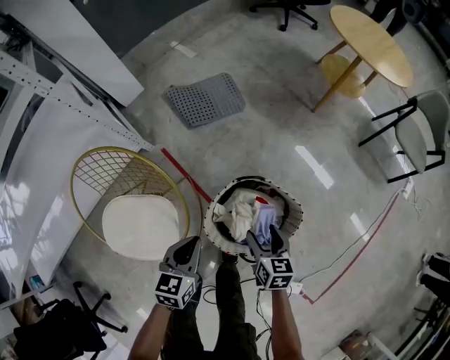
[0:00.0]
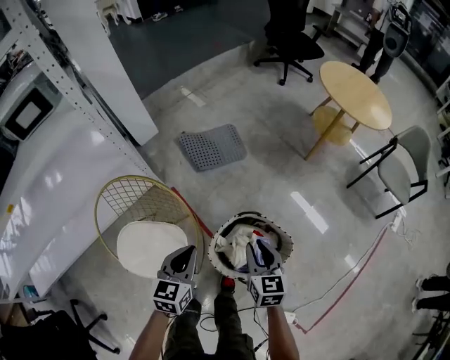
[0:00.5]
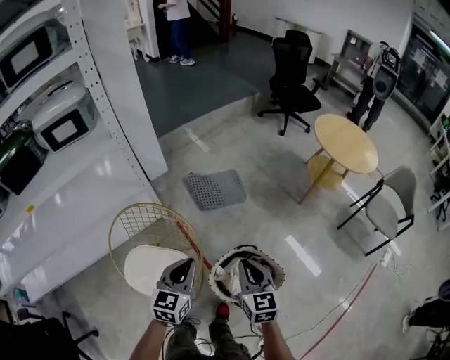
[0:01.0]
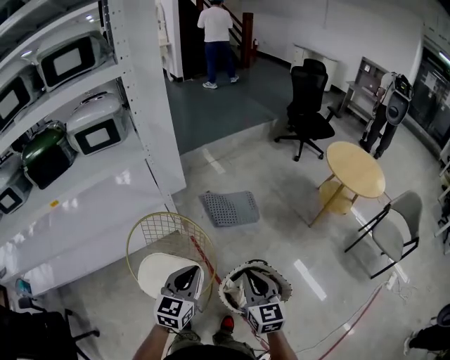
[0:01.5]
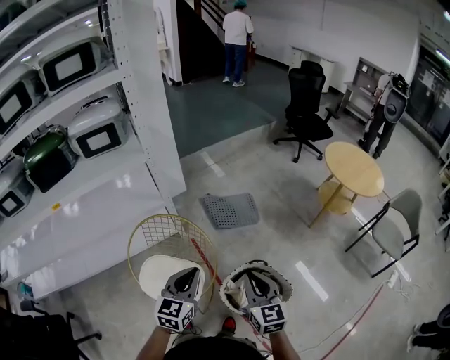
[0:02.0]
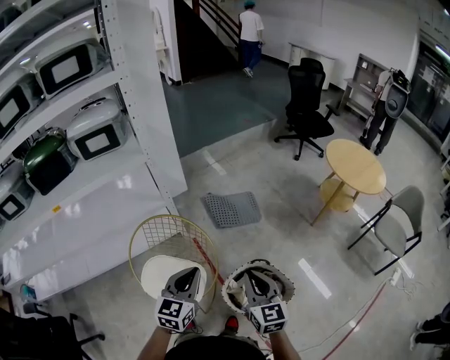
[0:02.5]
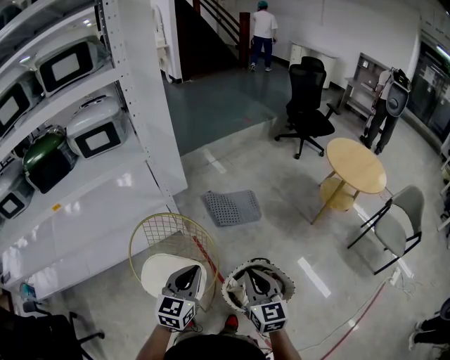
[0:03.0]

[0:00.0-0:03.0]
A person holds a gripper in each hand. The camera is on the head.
0:00.0 to 0:01.5: The grippers both shift upward by roughly 35 cm. The right gripper rotates roughly 40 degrees, and closes up, while the left gripper rotates roughly 30 degrees.
0:01.5 to 0:03.0: Neither gripper changes place.

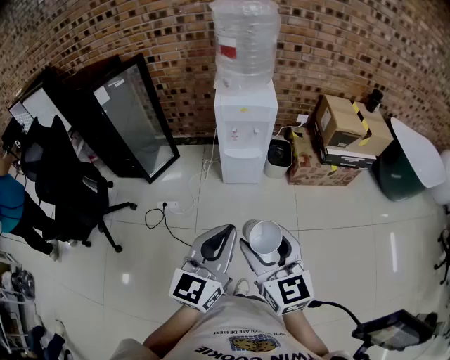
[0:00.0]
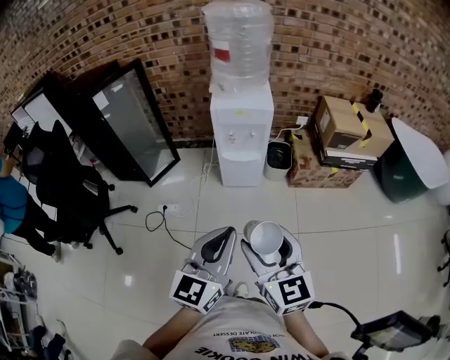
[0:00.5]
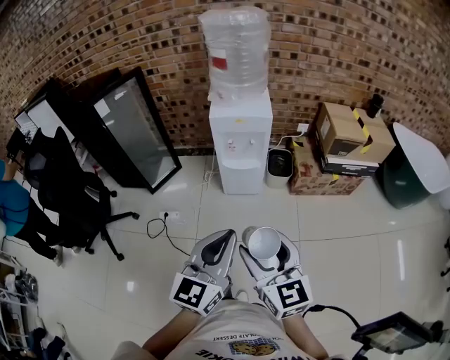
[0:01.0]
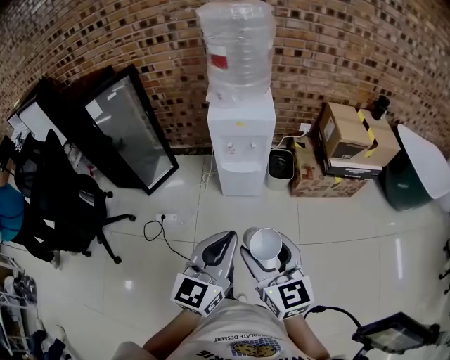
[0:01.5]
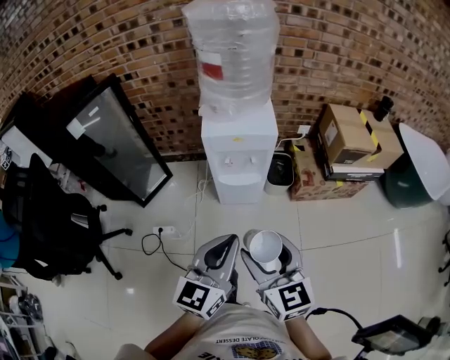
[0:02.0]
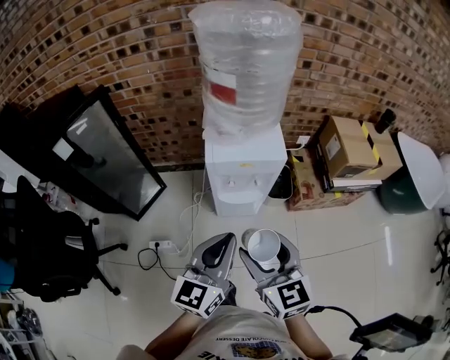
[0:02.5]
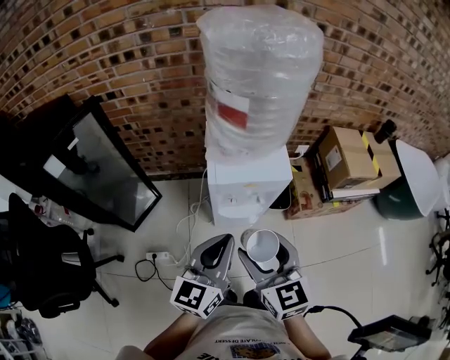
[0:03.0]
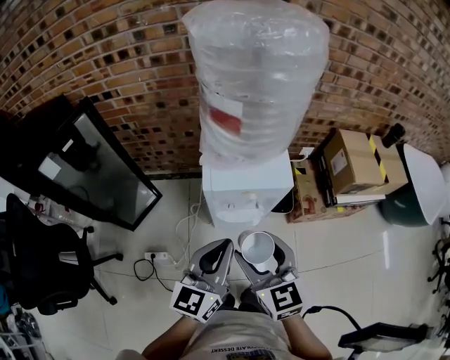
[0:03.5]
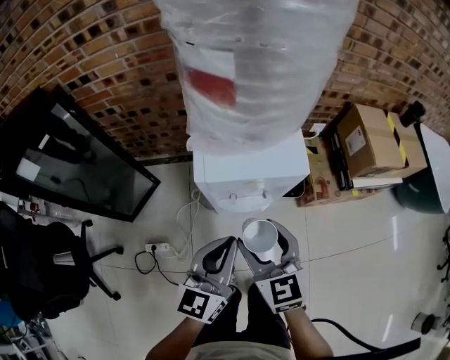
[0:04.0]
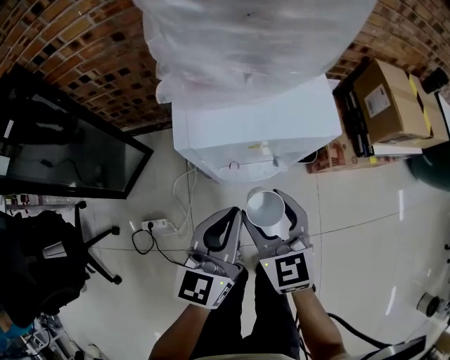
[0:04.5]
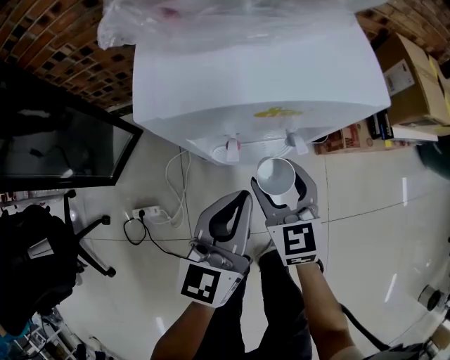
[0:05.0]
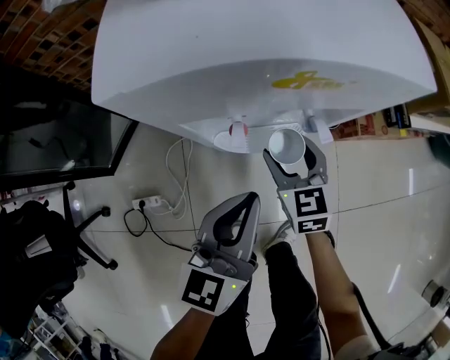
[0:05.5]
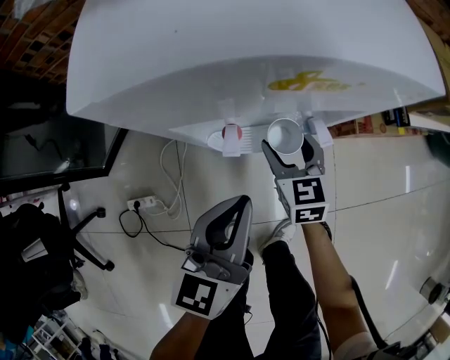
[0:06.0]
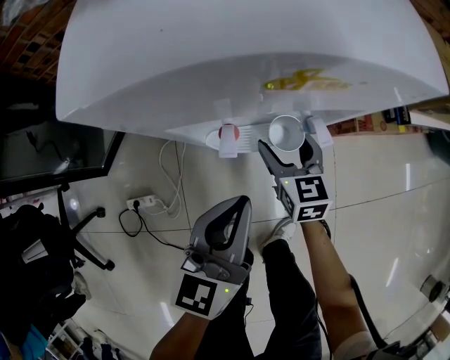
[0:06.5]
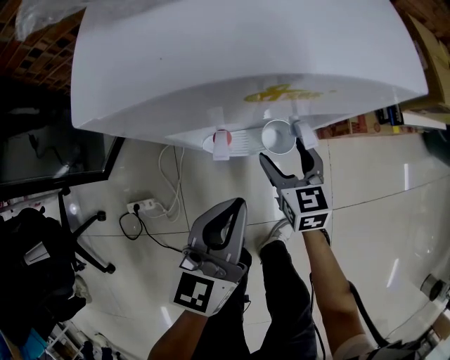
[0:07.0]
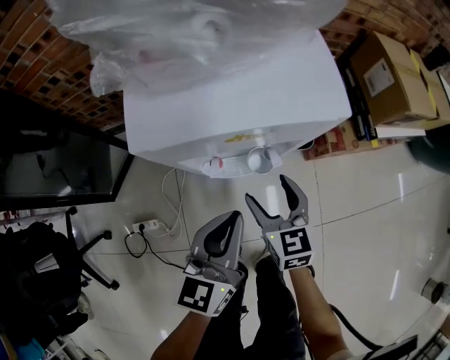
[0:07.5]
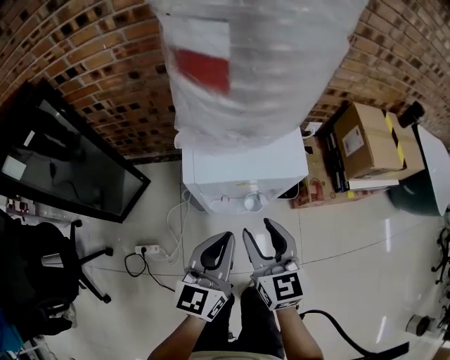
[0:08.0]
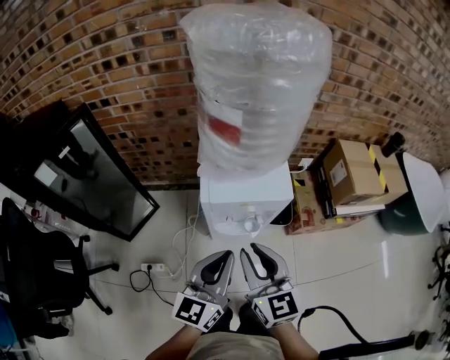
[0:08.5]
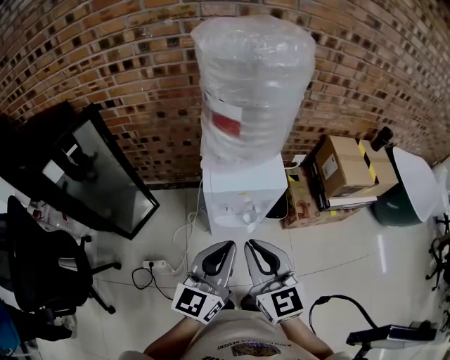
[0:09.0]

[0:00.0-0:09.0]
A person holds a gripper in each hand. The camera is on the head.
0:00.0 to 0:02.0: The two grippers go some 20 cm forward.
0:02.0 to 0:04.5: Both grippers travel together forward and downward, about 35 cm.
0:04.5 to 0:07.0: The right gripper is displaced downward by roughly 25 cm. The left gripper shifts about 15 cm downward.
0:07.0 to 0:09.0: The grippers both shift upward by approximately 40 cm. The right gripper swivels roughly 20 degrees, and closes up.

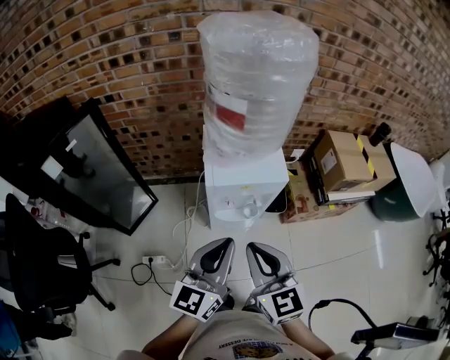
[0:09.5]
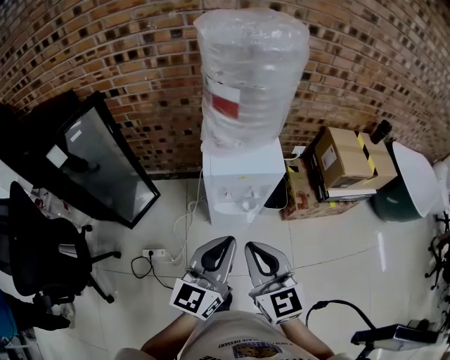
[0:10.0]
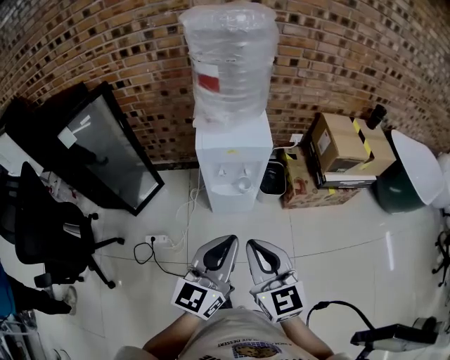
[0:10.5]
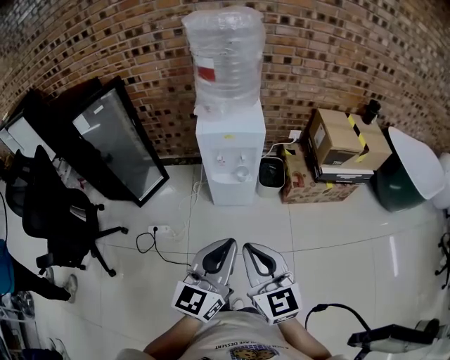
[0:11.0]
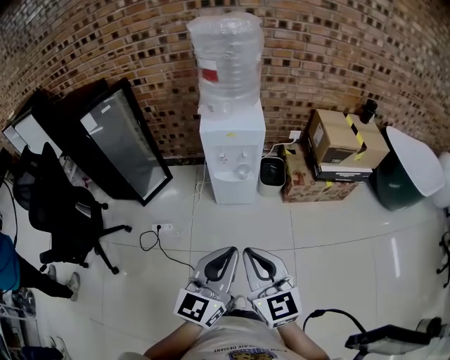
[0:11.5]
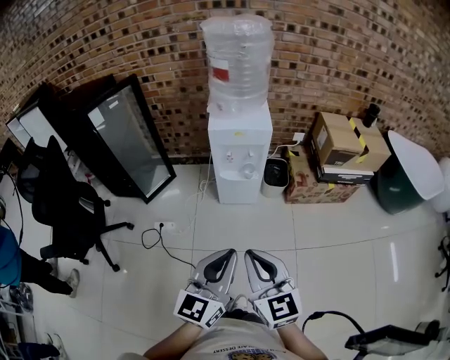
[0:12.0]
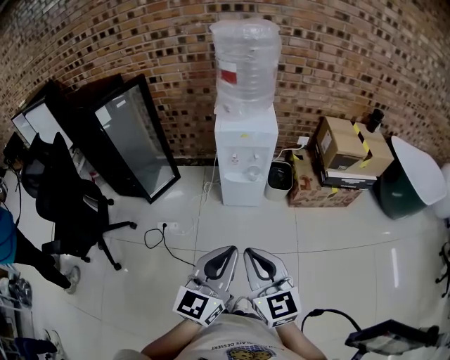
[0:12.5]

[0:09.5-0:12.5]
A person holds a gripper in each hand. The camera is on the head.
0:09.5 to 0:11.0: The two grippers go approximately 25 cm backward and to the right.
0:11.0 to 0:12.5: Both grippers travel together backward, about 10 cm.

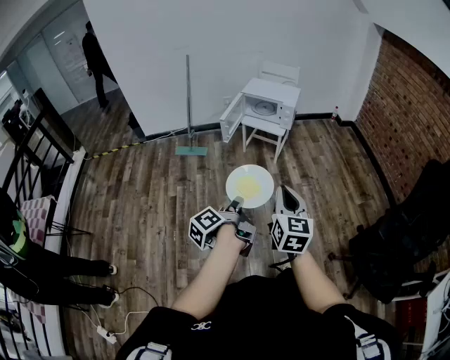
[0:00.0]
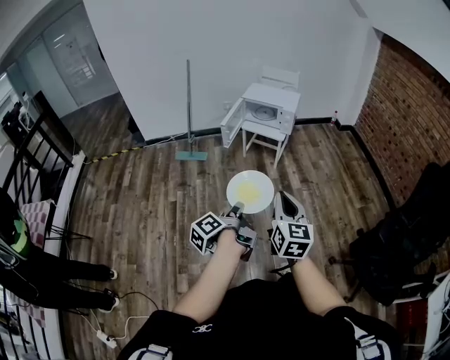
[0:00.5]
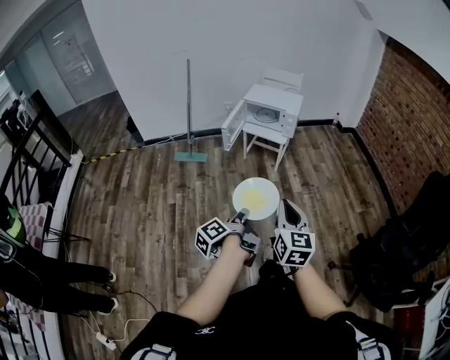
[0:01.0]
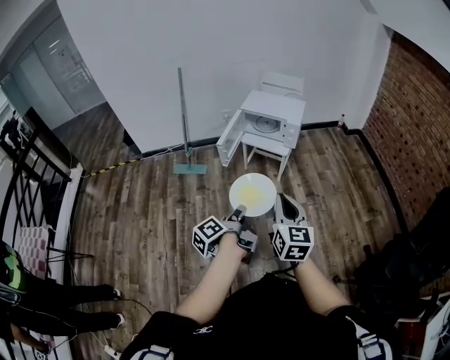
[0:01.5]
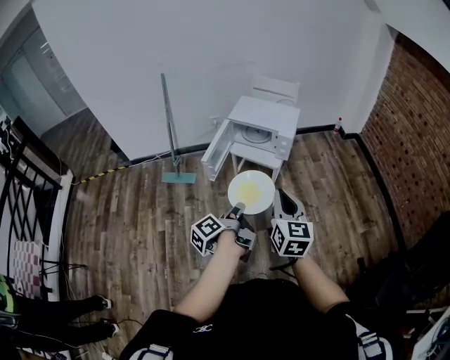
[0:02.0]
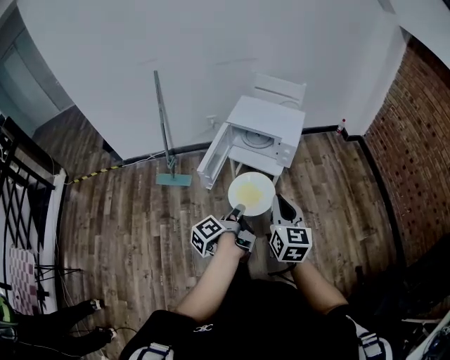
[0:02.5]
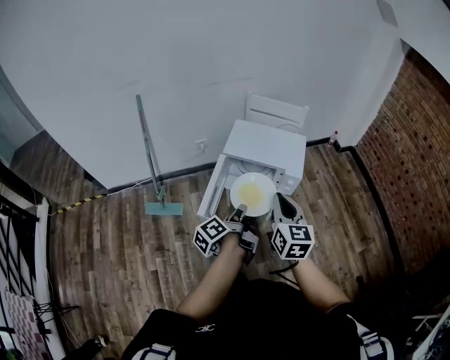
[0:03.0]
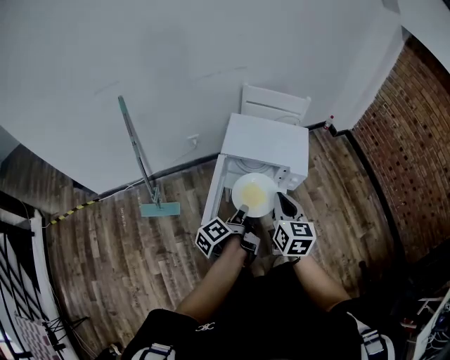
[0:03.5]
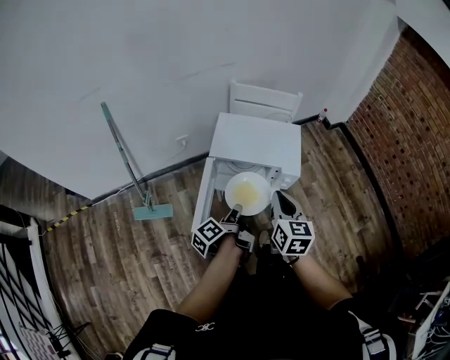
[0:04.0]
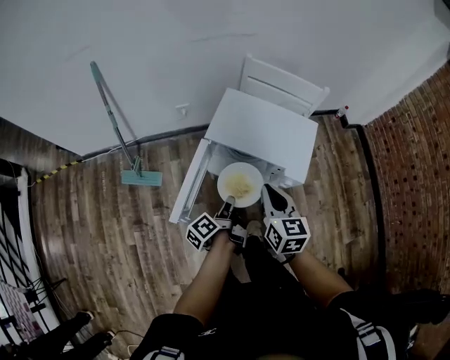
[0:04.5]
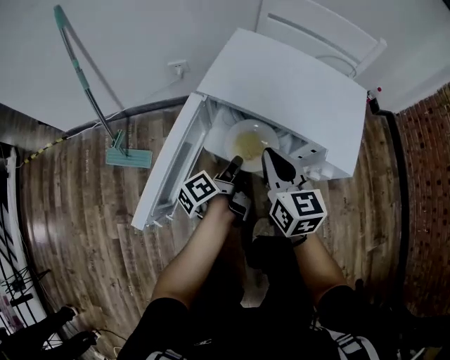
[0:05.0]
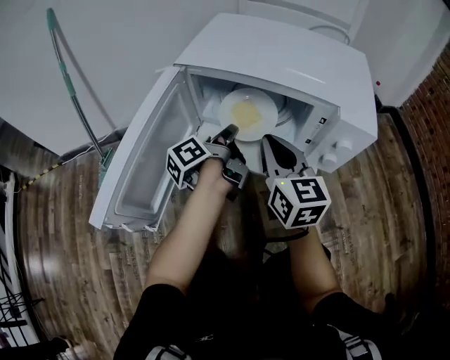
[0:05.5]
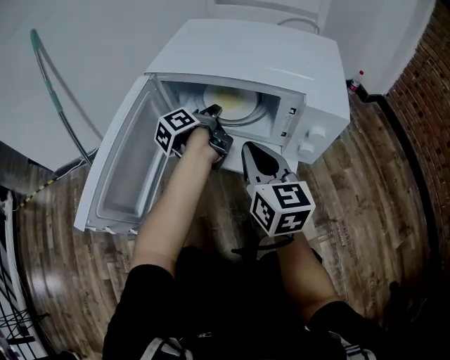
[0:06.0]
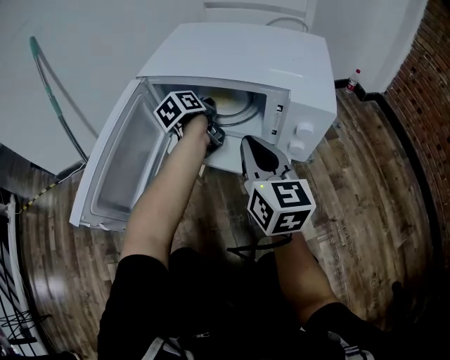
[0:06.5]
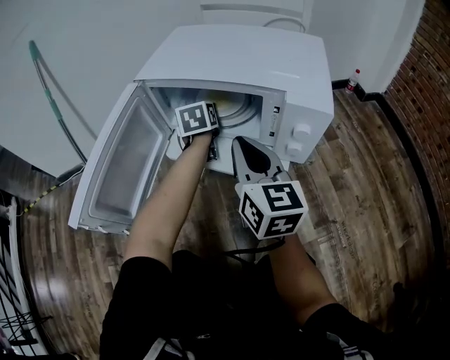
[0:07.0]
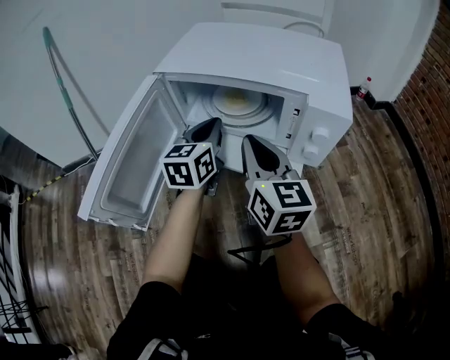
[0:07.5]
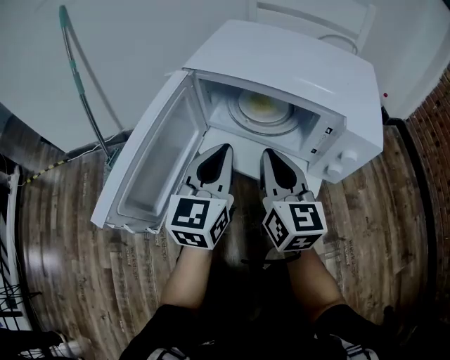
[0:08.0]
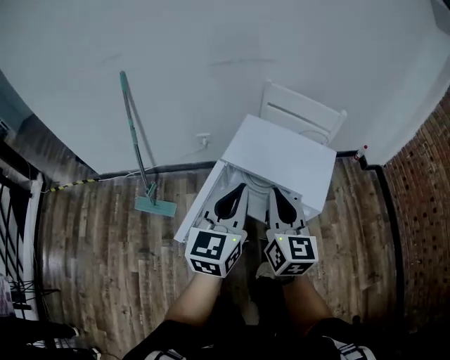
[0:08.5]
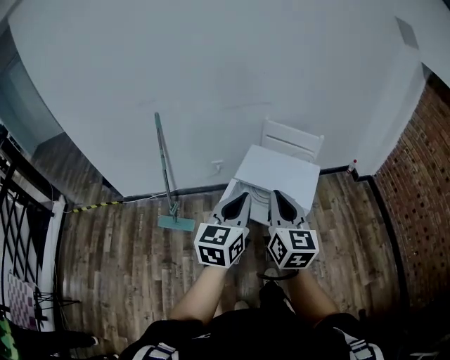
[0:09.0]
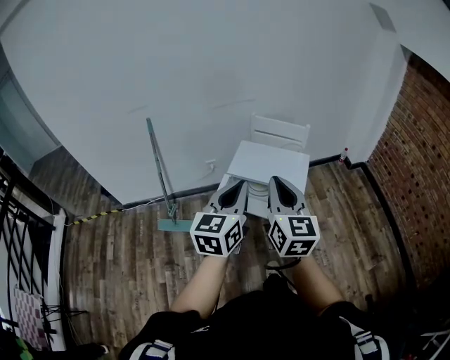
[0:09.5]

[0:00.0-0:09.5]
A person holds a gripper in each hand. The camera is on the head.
0:00.0 to 0:02.0: The two grippers go roughly 35 cm forward.
0:02.0 to 0:04.0: The pair of grippers is taken forward, some 40 cm.
0:04.0 to 0:05.5: The grippers both shift downward and forward by roughly 40 cm. The right gripper turns by approximately 20 degrees.
0:05.5 to 0:07.5: The left gripper is displaced upward by approximately 5 cm, reaches roughly 10 cm forward, then returns, rolls clockwise, seen from behind, by roughly 70 degrees, and opens and closes again.
0:07.5 to 0:09.5: The left gripper heads upward and backward, covering some 70 cm. The right gripper is displaced upward by some 60 cm.

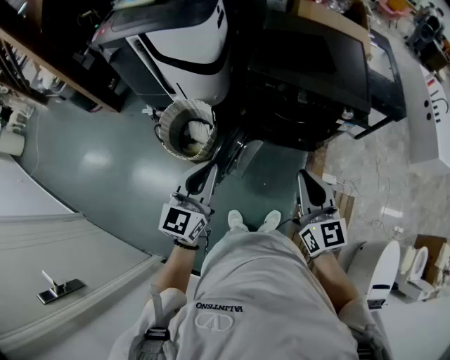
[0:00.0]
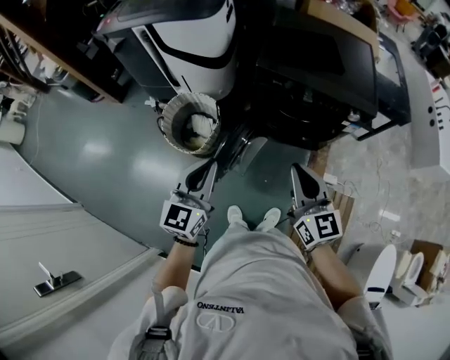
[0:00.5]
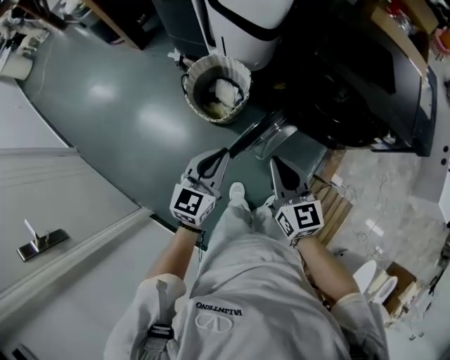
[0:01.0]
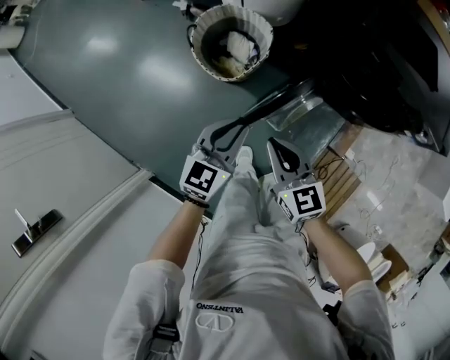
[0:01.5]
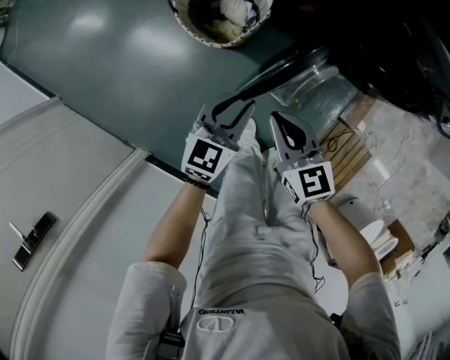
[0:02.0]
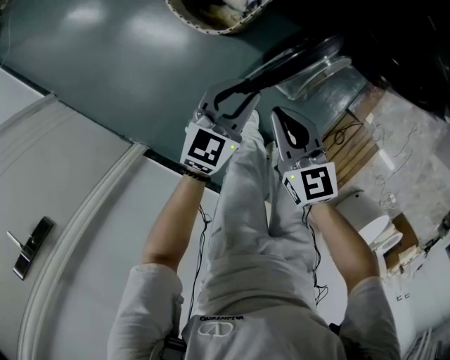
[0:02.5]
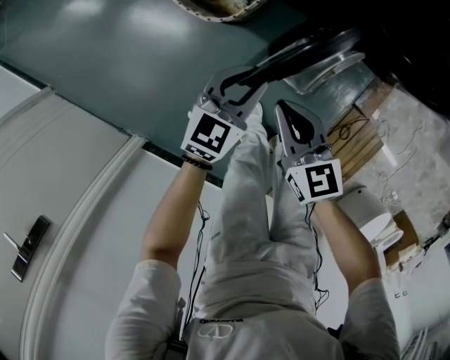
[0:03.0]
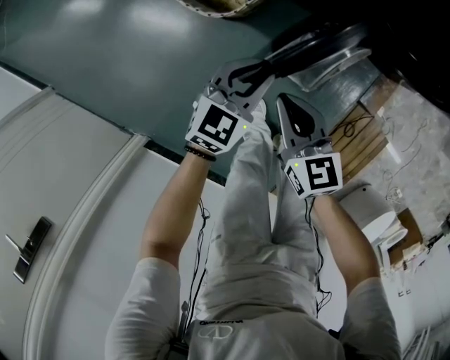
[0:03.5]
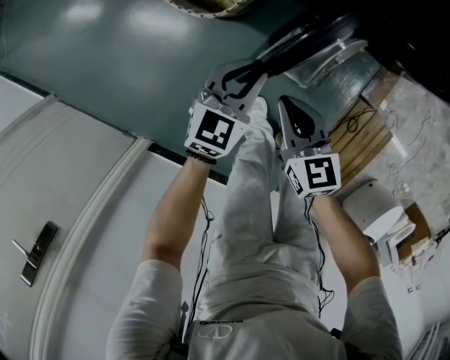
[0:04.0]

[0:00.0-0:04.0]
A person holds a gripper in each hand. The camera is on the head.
0:00.0 to 0:02.0: The right gripper moves downward and to the left, approximately 40 cm, and rotates approximately 40 degrees, while the left gripper moves downward, about 35 cm, and rotates approximately 20 degrees.
0:02.0 to 0:04.0: The two grippers go roughly 10 cm downward.
